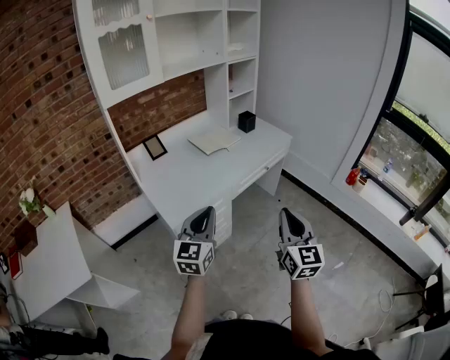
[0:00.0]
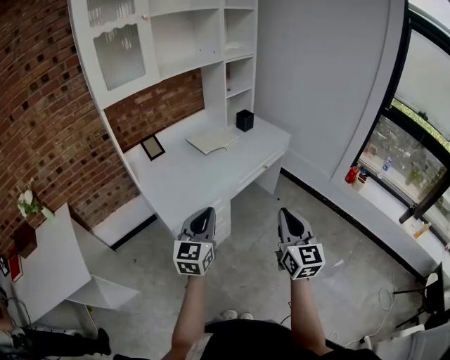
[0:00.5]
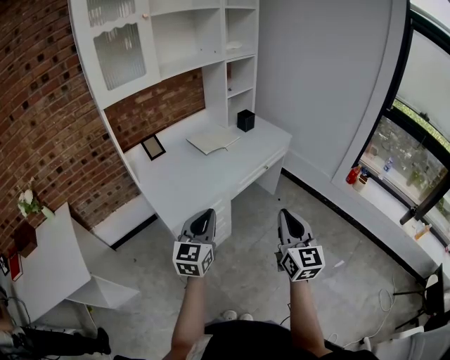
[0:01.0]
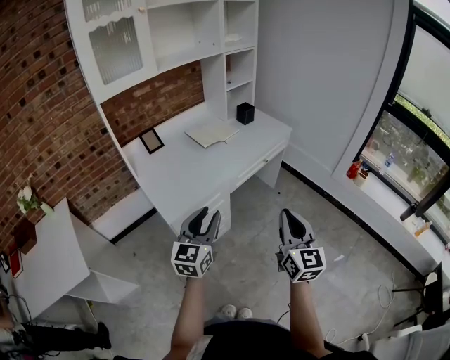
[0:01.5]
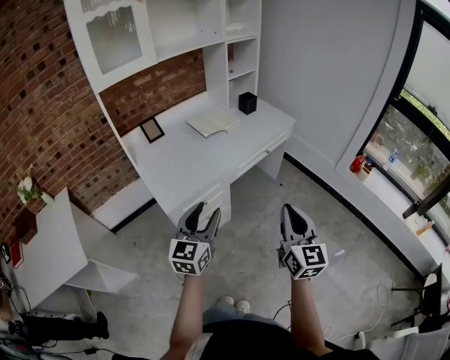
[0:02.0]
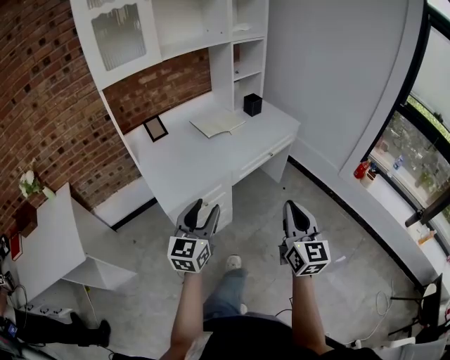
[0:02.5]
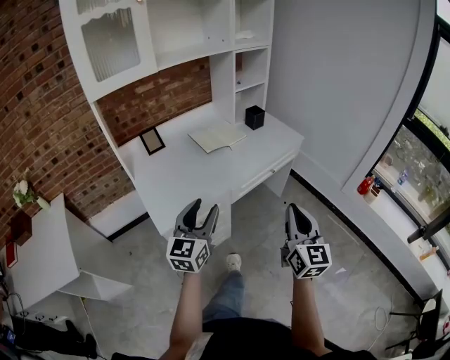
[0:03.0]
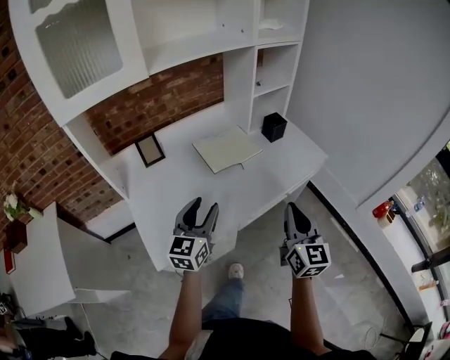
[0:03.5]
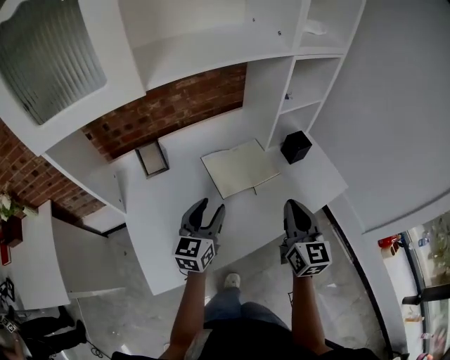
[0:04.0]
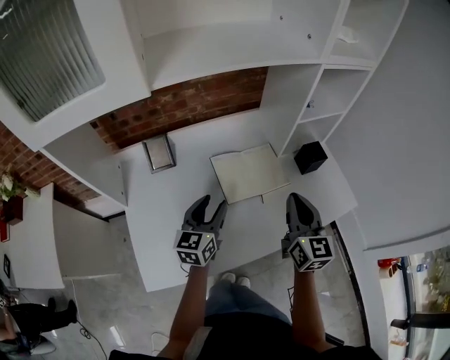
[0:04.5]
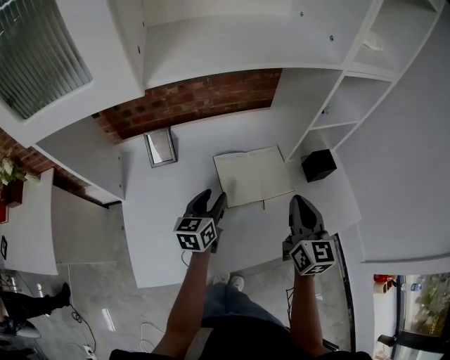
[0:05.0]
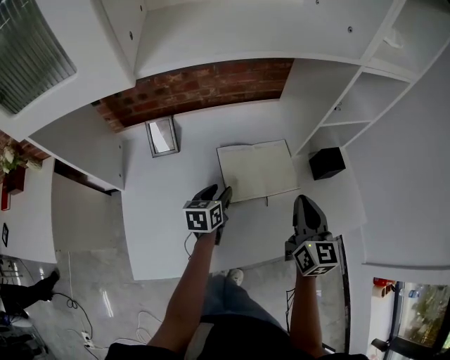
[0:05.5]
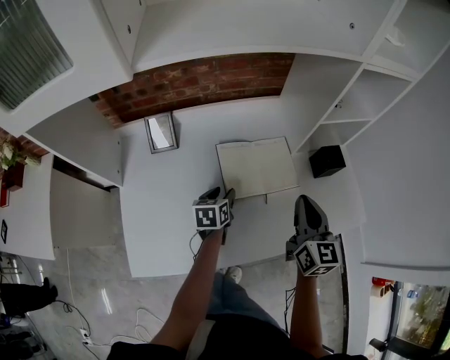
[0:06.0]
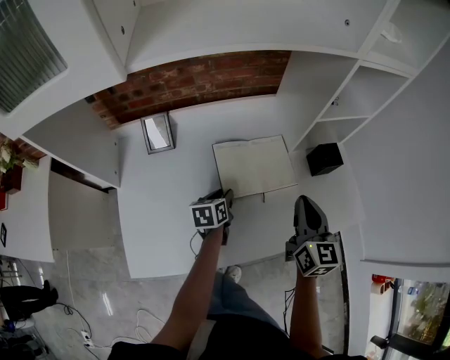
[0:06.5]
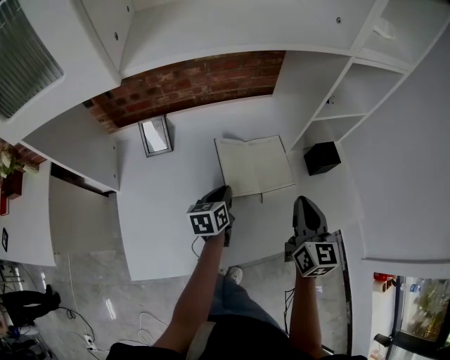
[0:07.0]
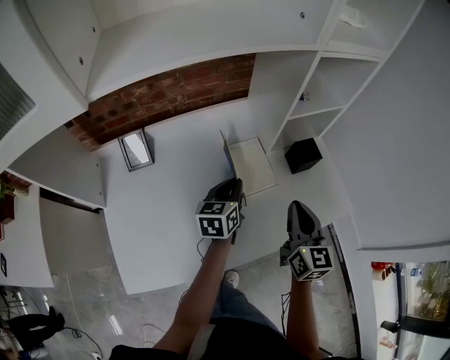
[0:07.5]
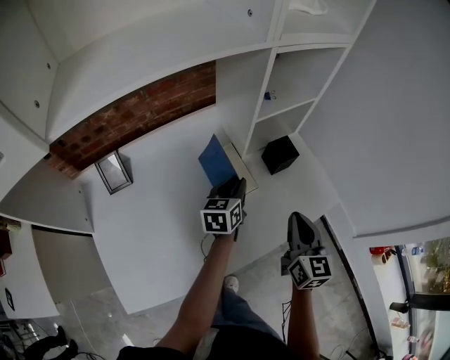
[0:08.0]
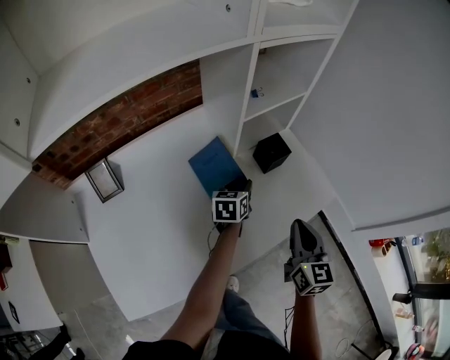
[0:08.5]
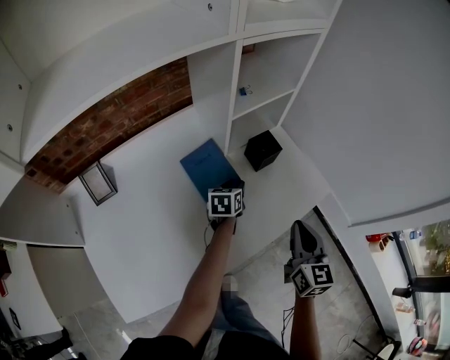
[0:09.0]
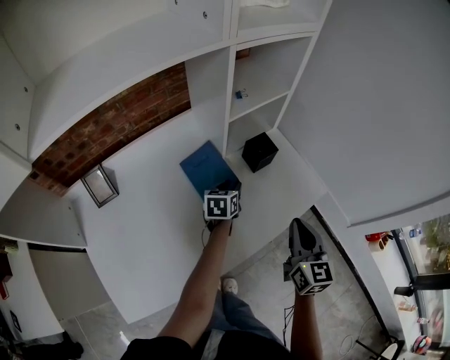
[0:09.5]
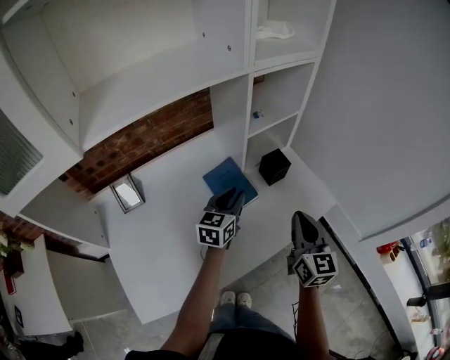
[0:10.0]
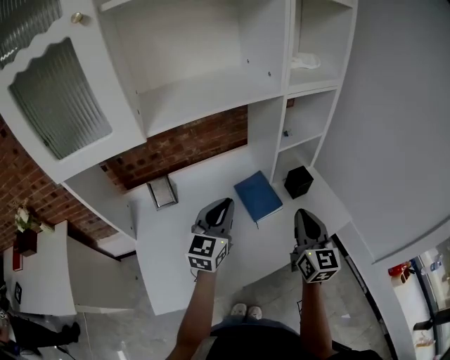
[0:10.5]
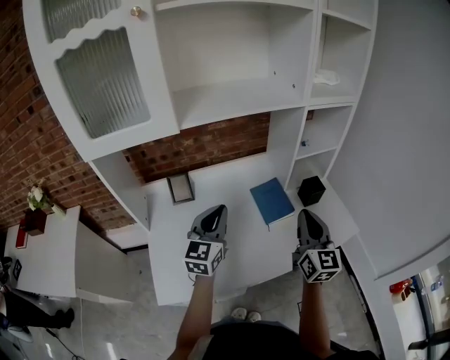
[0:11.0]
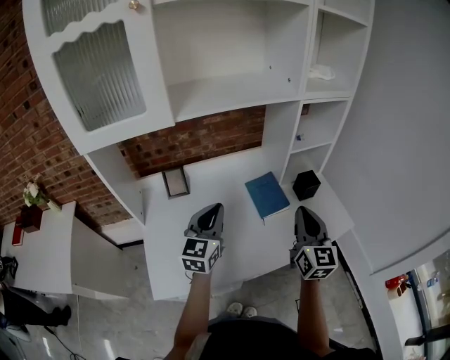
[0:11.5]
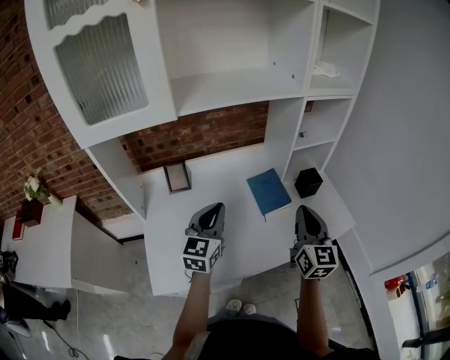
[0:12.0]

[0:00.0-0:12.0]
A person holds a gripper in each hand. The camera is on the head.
0:00.0 to 0:02.0: The left gripper opens.
0:02.0 to 0:04.0: Both grippers are carried forward, some 50 cm.
0:04.0 to 0:06.0: The left gripper goes roughly 20 cm downward and forward, and tips its fingers downward by about 30 degrees, while the right gripper is displaced forward and downward by roughly 15 cm.
0:06.0 to 0:08.0: The right gripper goes roughly 10 cm to the right, while the left gripper is displaced to the right, upward and forward by roughly 20 cm, changes its angle by some 20 degrees, and closes up.
0:08.0 to 0:10.0: Both grippers travel together upward, approximately 5 cm.
0:10.0 to 0:12.0: The left gripper goes roughly 25 cm to the left, backward and upward, rotates approximately 30 degrees, and closes; the right gripper travels to the left and upward by approximately 10 cm.

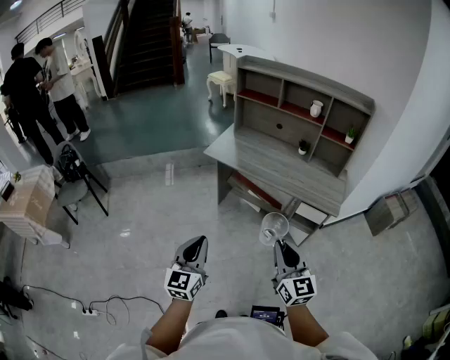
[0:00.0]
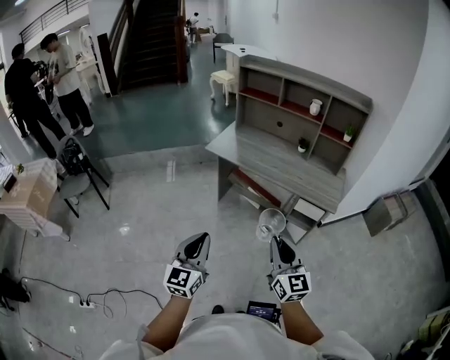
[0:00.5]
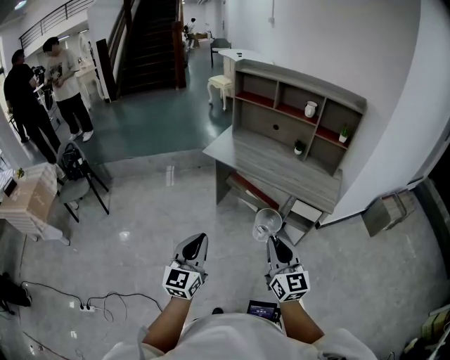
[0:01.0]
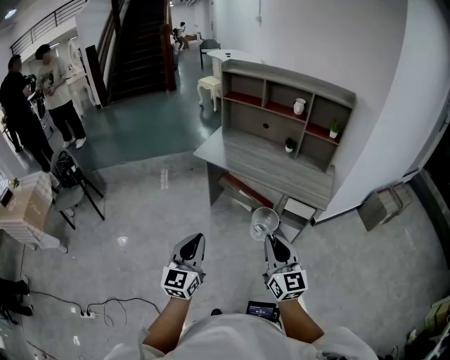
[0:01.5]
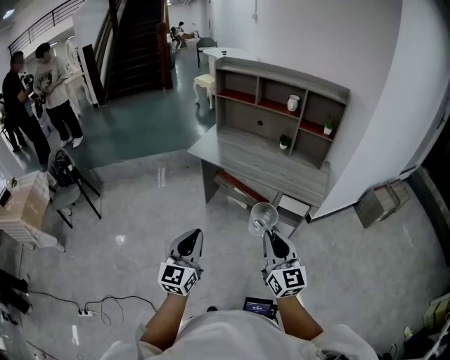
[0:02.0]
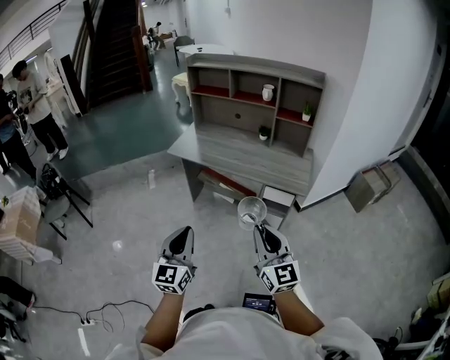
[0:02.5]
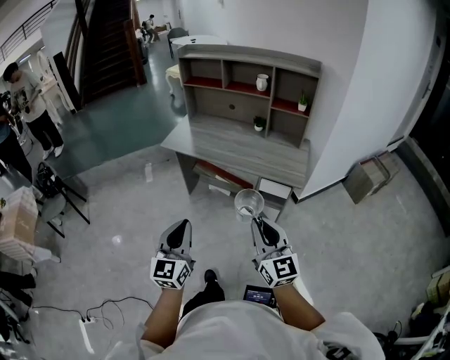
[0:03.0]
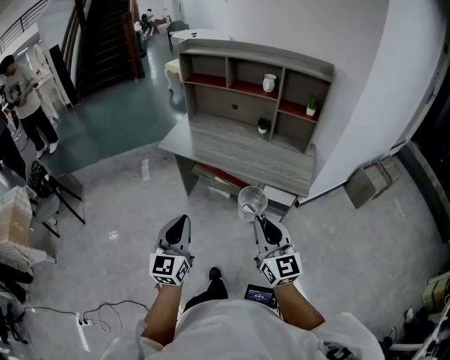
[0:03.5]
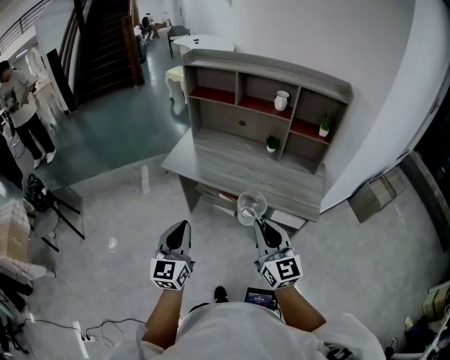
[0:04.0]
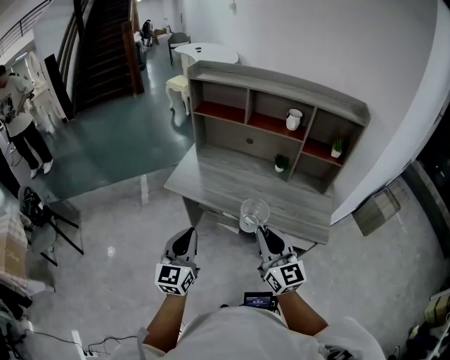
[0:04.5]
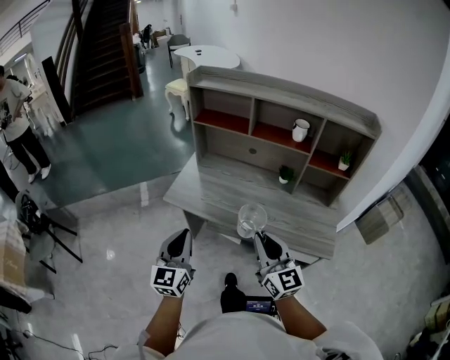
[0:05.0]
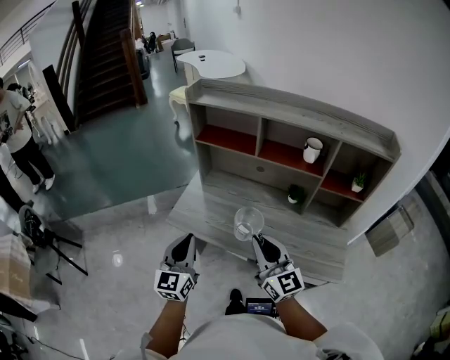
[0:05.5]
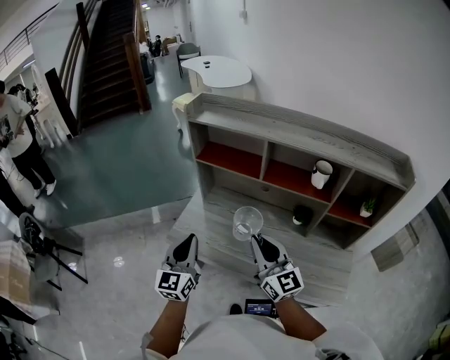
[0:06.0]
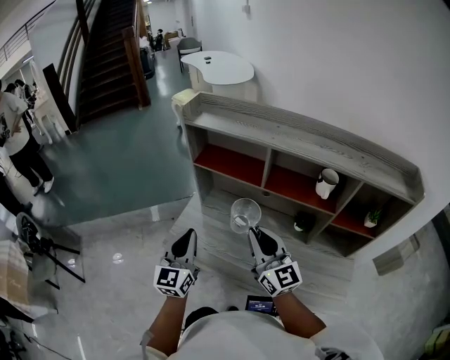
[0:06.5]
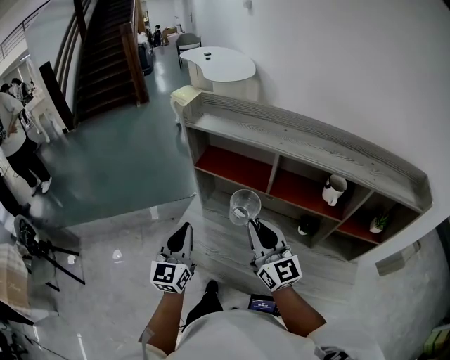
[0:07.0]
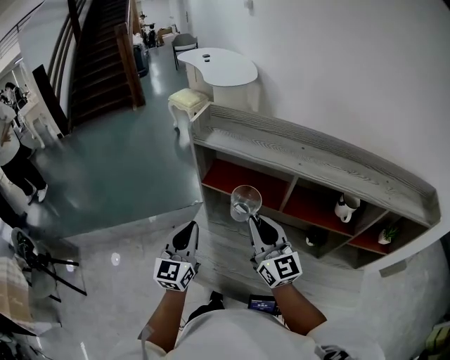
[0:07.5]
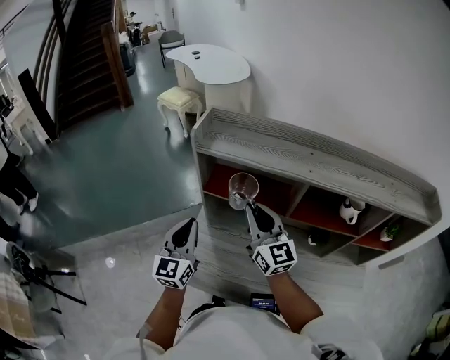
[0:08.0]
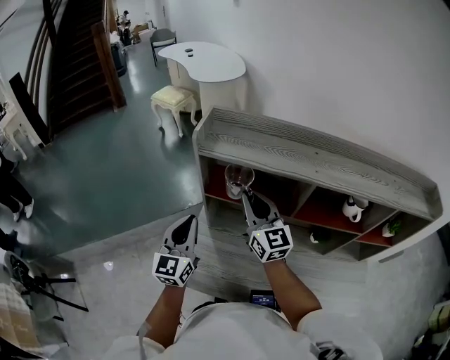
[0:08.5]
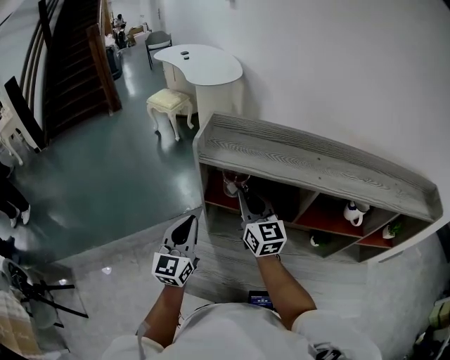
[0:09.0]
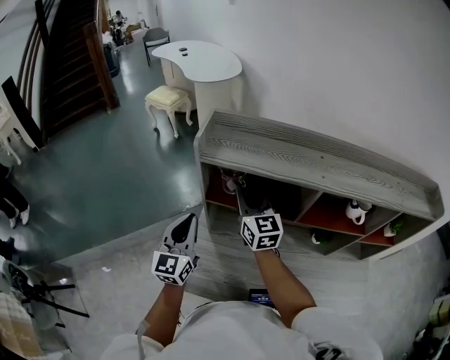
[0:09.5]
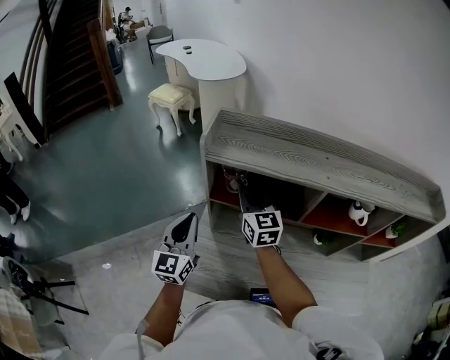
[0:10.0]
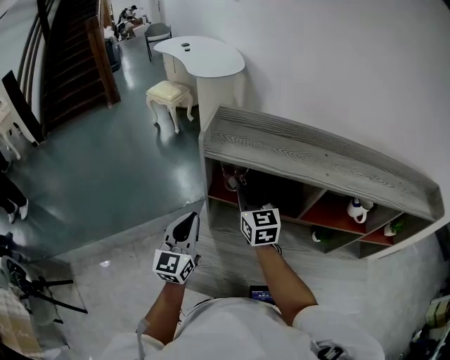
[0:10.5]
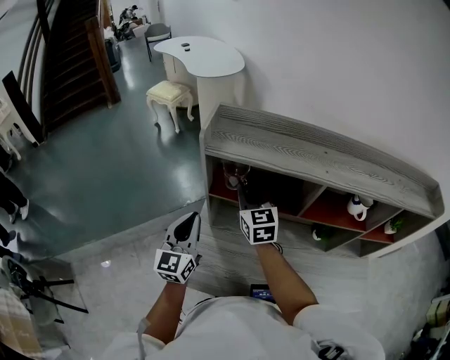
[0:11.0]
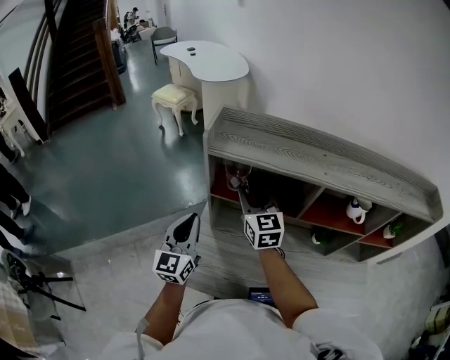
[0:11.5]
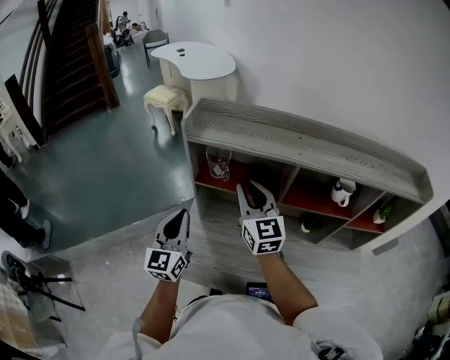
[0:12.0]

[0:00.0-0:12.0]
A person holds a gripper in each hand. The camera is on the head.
0:00.0 to 0:02.0: The two grippers go roughly 5 cm to the right.
0:02.0 to 0:04.0: The two grippers go some 25 cm forward.
0:04.0 to 0:06.0: The two grippers travel together, forward, approximately 40 cm.
0:06.0 to 0:08.0: The grippers both shift forward by some 25 cm.
0:08.0 to 0:10.0: The left gripper shifts approximately 5 cm forward. Meanwhile the right gripper moves forward and to the left, approximately 15 cm.
0:10.0 to 0:12.0: The right gripper travels backward, upward and to the right by some 15 cm, while the left gripper moves backward, roughly 5 cm.

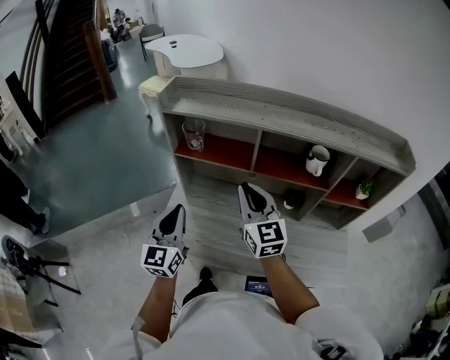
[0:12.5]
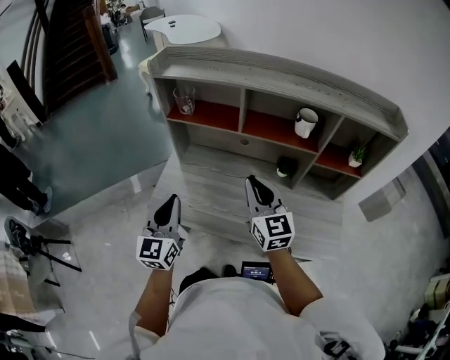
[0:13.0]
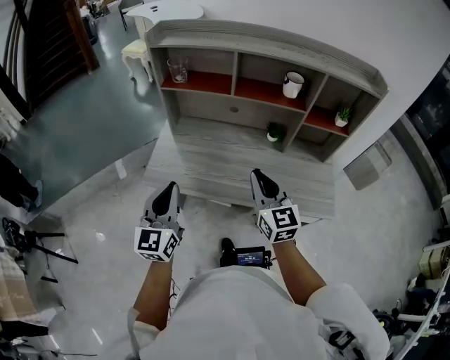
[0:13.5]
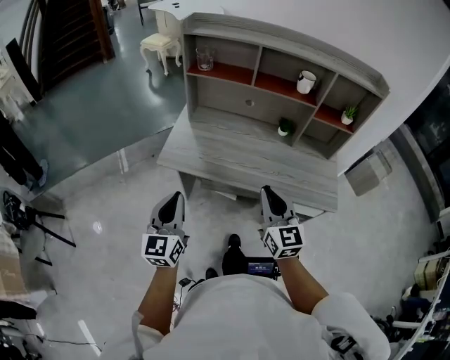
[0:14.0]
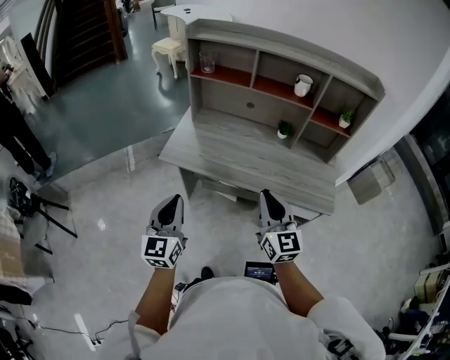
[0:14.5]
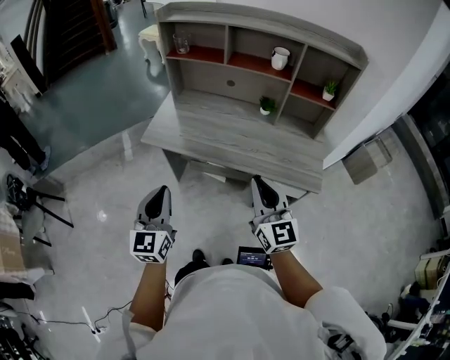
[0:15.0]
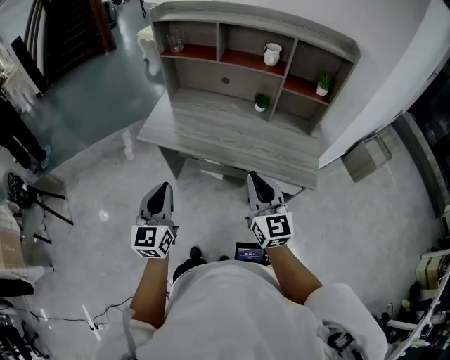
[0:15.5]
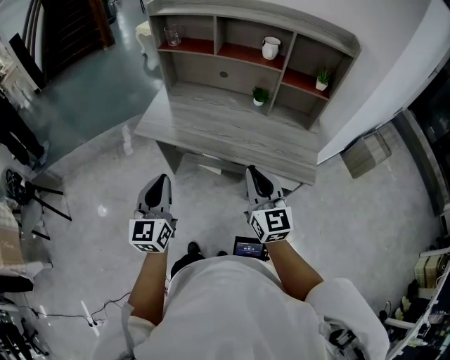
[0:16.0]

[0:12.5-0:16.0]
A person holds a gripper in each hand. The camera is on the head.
0:12.5 to 0:14.5: The grippers both shift backward by approximately 40 cm.
0:14.5 to 0:16.0: The right gripper moves to the right, some 10 cm. The left gripper travels to the right and backward by roughly 10 cm.
